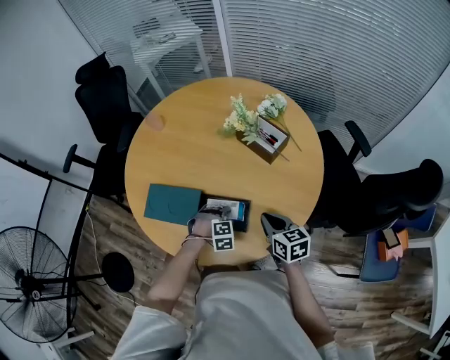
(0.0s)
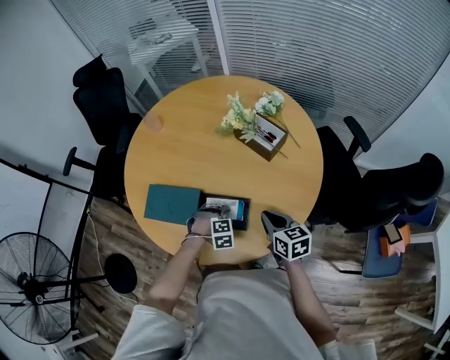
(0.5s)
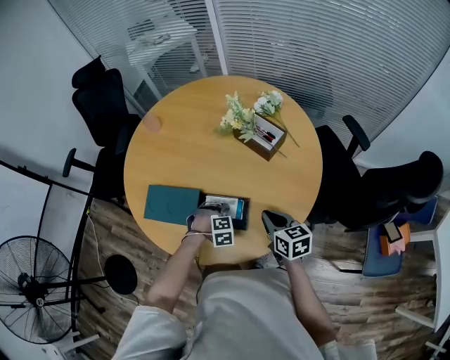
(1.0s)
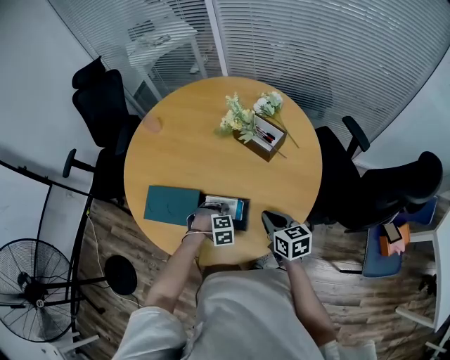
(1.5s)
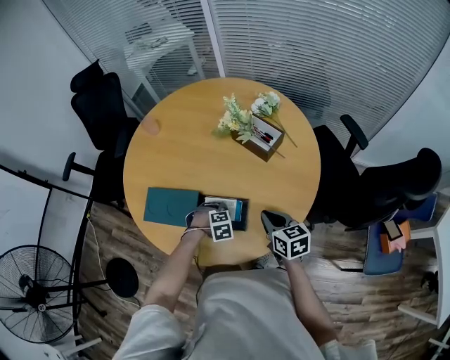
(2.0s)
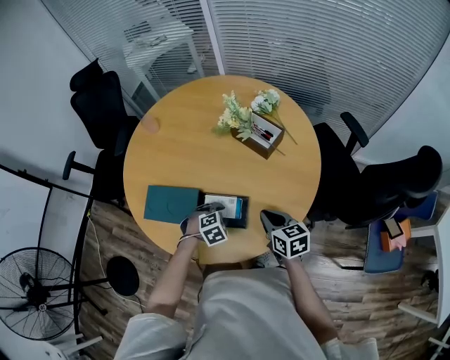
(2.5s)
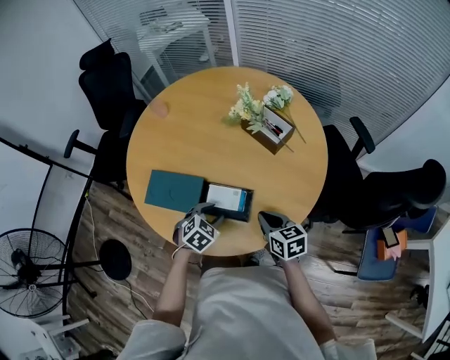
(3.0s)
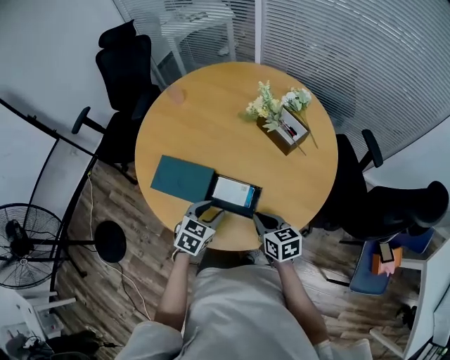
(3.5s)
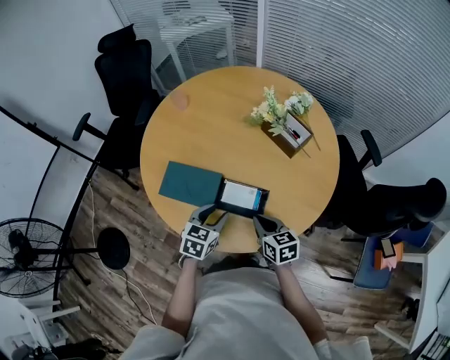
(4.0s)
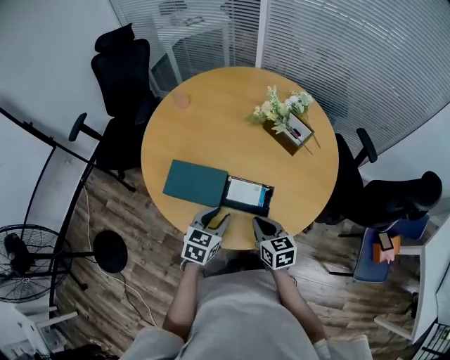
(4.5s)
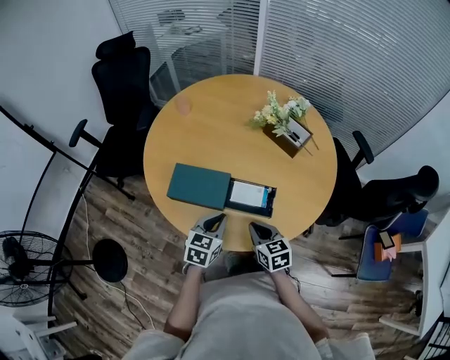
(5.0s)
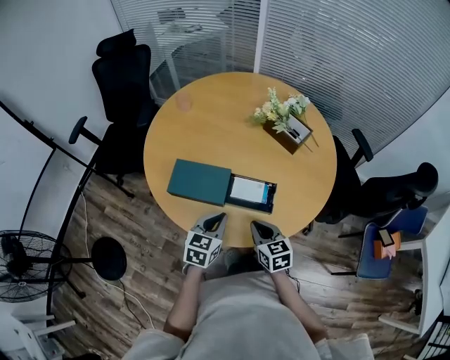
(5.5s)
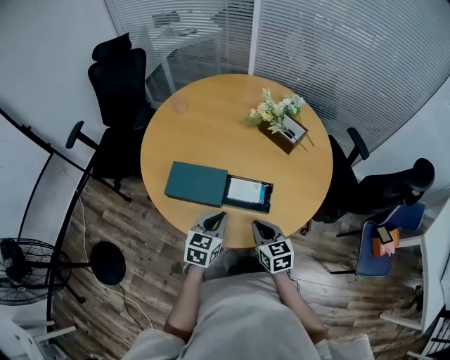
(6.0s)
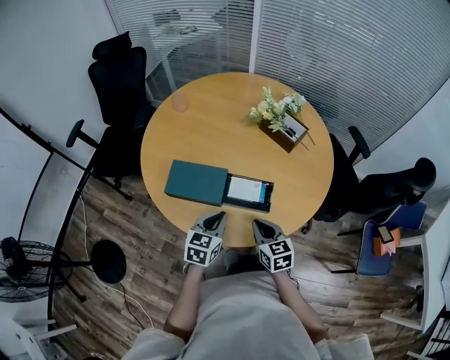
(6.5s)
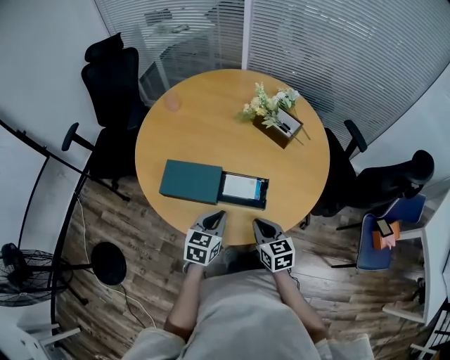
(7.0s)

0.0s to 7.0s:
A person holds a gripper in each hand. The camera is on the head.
0.0s to 2.0s: The grippers move only a little.
2.0s to 3.5s: The left gripper travels upward by some 15 cm, and rotates around the line of its fingers by roughly 60 degrees, counterclockwise from behind. The right gripper ends up about 10 cm from where it was.
3.5s to 5.0s: The two grippers go roughly 10 cm to the left. The left gripper closes.
5.0s to 7.0s: The grippers move only a little.

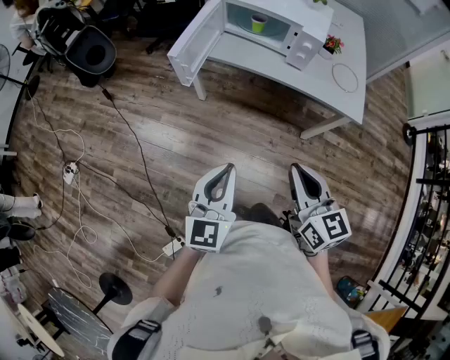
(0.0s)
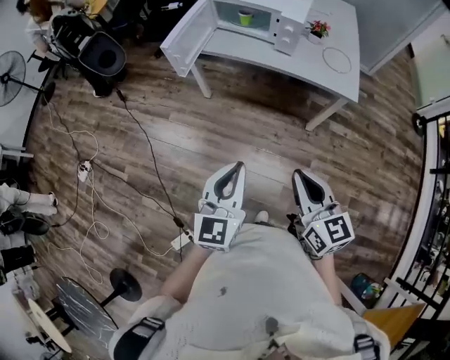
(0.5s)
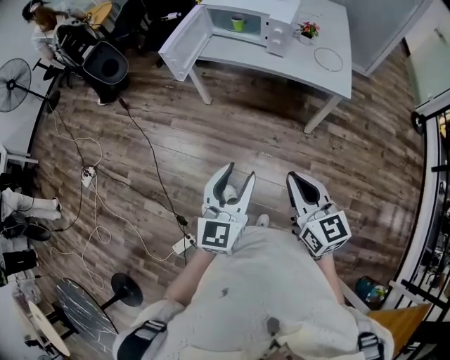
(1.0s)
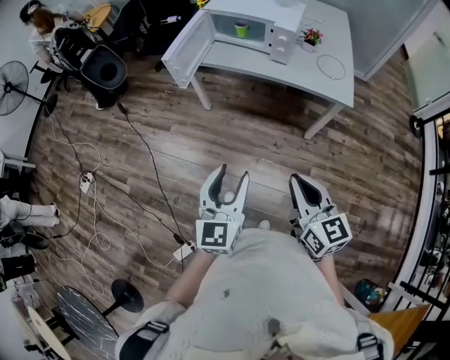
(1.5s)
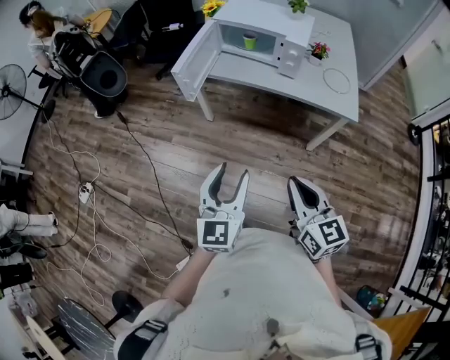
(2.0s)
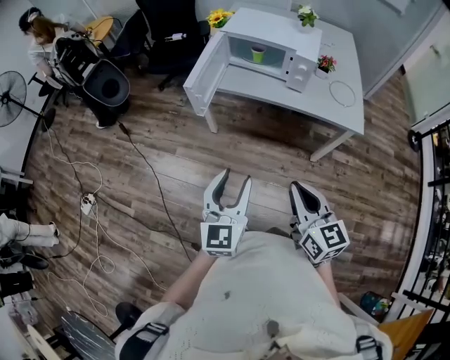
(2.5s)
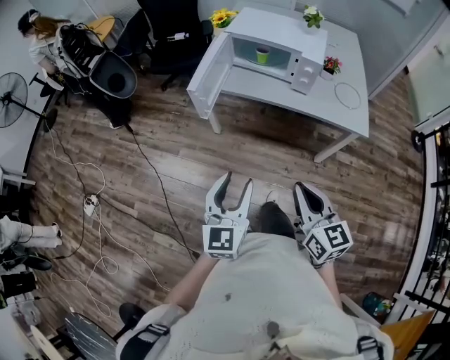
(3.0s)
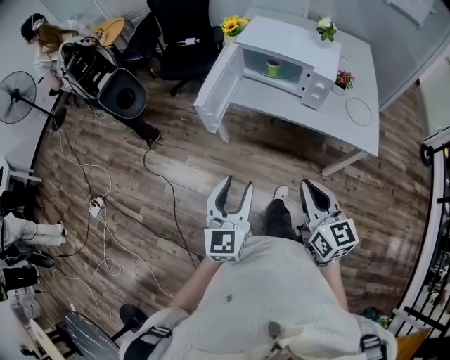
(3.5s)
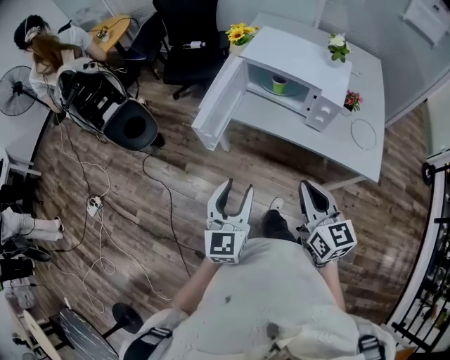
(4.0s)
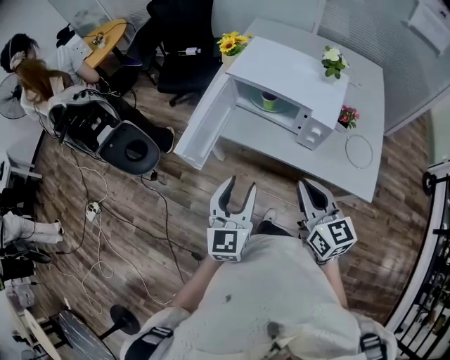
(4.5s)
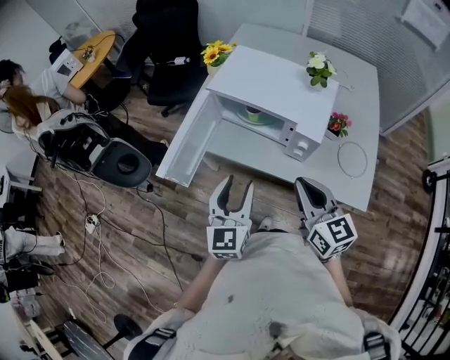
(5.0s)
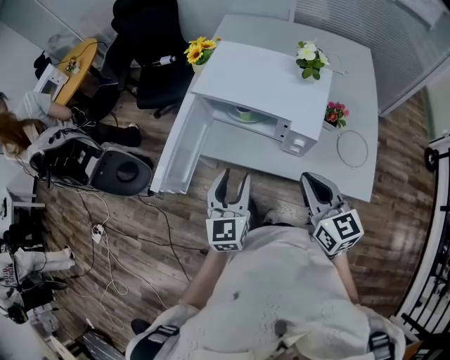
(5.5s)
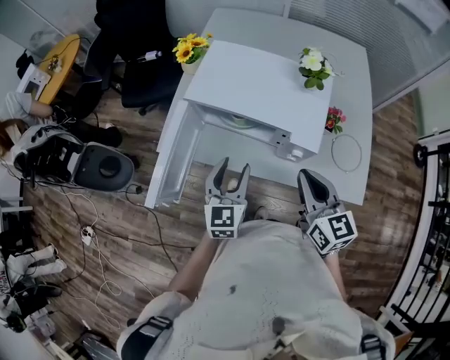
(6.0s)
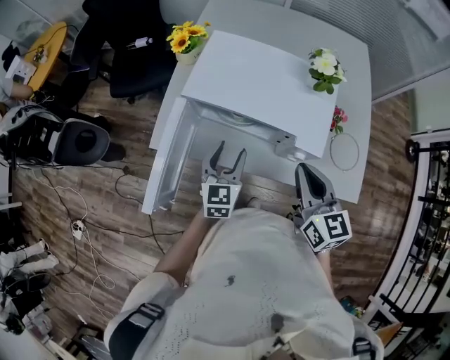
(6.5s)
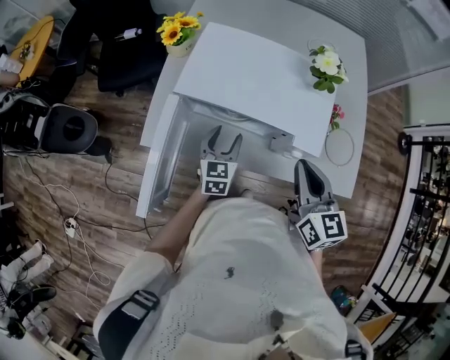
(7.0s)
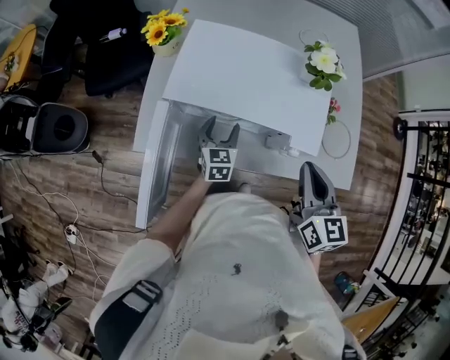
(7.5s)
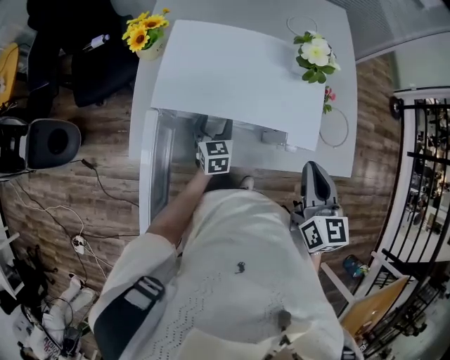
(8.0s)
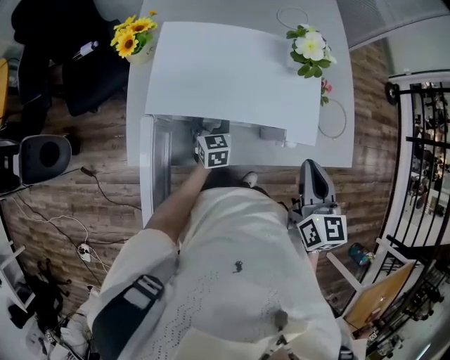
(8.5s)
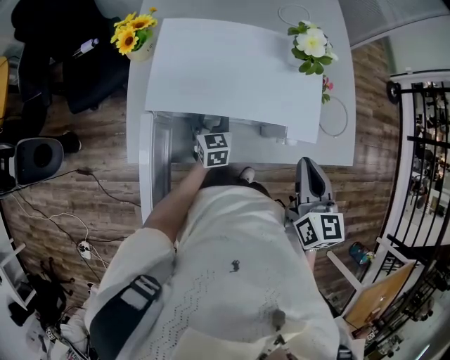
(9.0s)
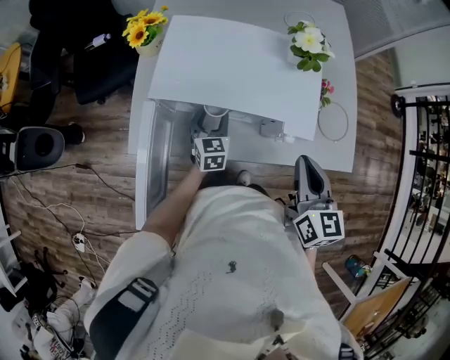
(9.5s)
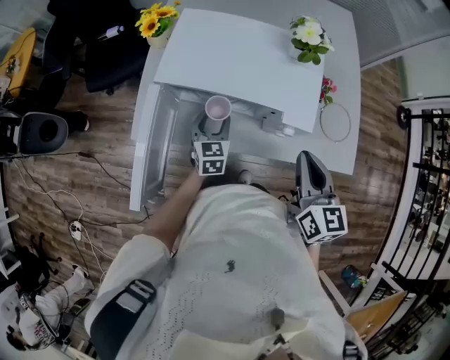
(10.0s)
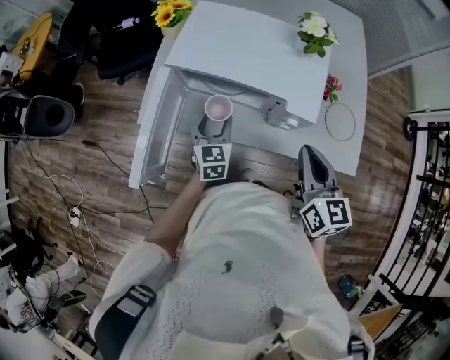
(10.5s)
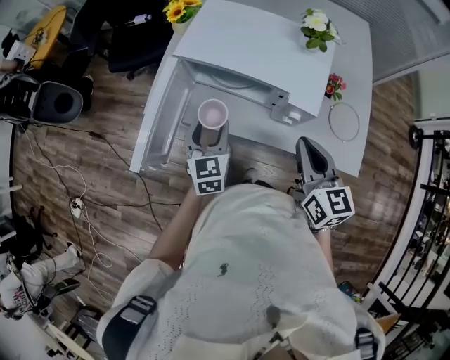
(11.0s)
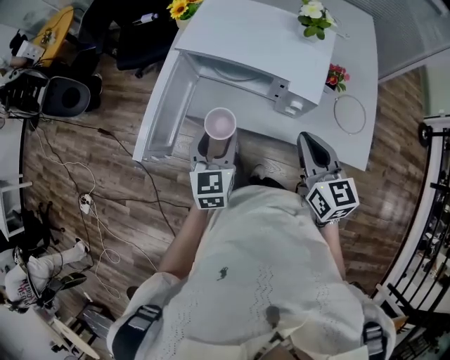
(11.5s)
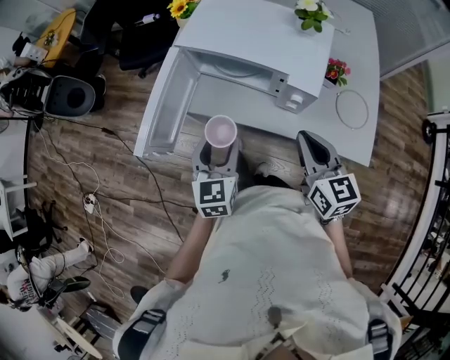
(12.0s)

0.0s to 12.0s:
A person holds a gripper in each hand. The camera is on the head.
0.0s to 2.0s: Both grippers move backward, roughly 10 cm. The left gripper opens up.
2.0s to 4.0s: The two grippers go roughly 25 cm forward.
4.0s to 6.0s: Both grippers move forward and to the right, some 35 cm.
6.0s to 8.0s: The left gripper heads forward and downward, covering approximately 25 cm. Meanwhile the right gripper moves forward, roughly 5 cm, and changes its angle by roughly 30 degrees.
8.0s to 10.0s: The left gripper travels backward by some 5 cm.
10.0s to 12.0s: The right gripper is displaced backward by approximately 10 cm, and changes its angle by approximately 20 degrees; the left gripper shifts about 25 cm backward and upward.

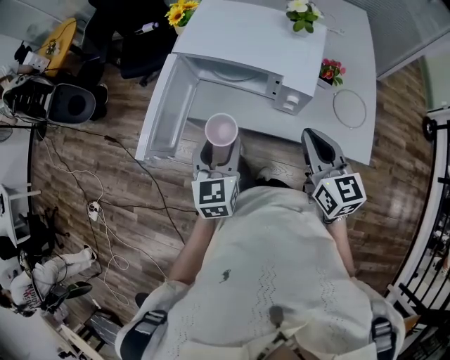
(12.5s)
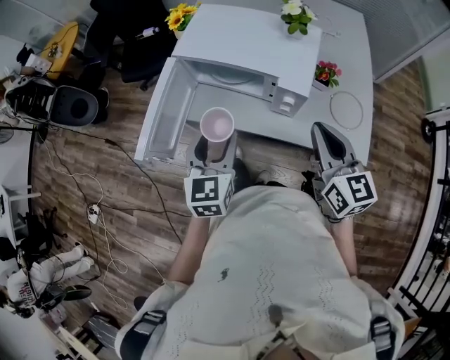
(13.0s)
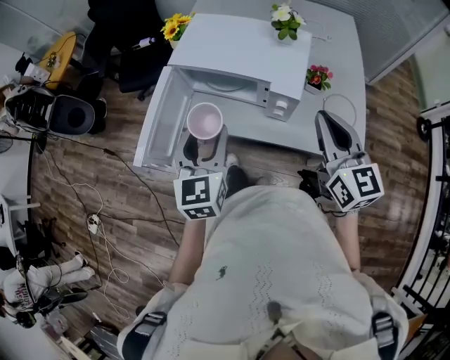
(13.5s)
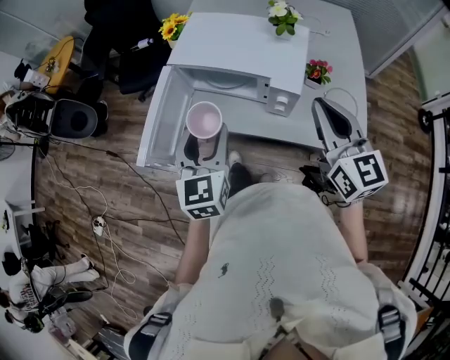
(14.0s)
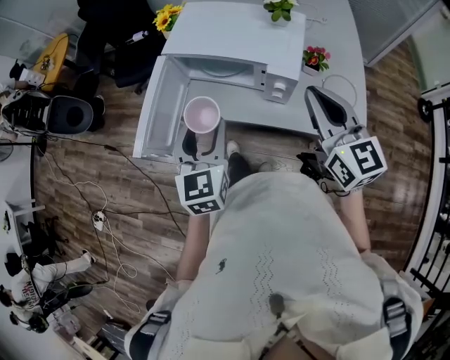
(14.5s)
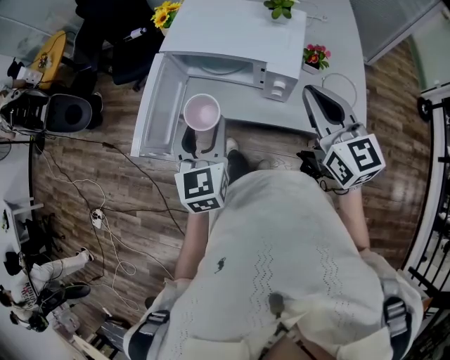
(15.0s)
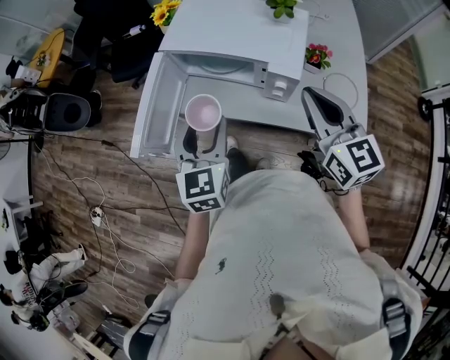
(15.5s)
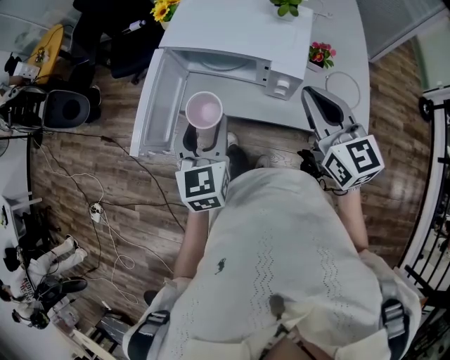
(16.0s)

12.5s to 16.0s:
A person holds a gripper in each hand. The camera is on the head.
12.5s to 14.5s: Both grippers travel together upward, approximately 10 cm.
14.5s to 16.0s: The grippers make only small movements.

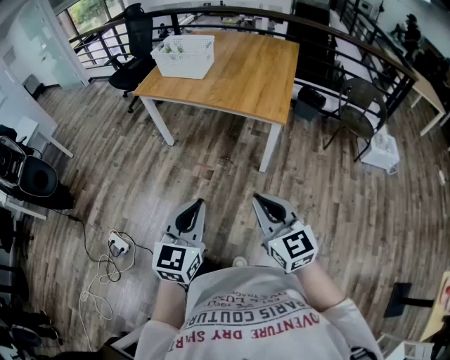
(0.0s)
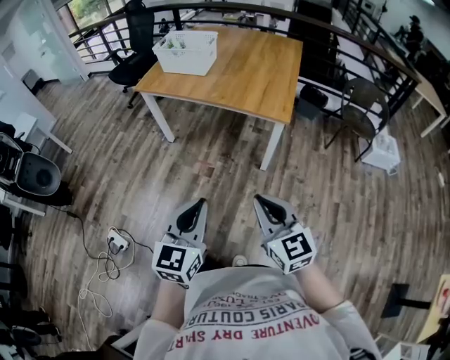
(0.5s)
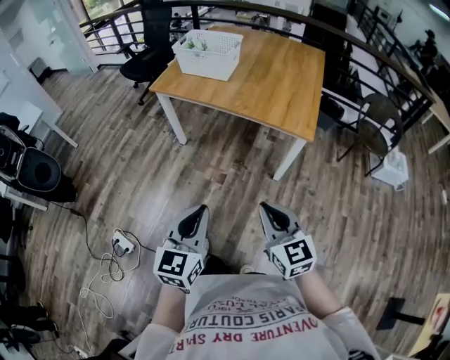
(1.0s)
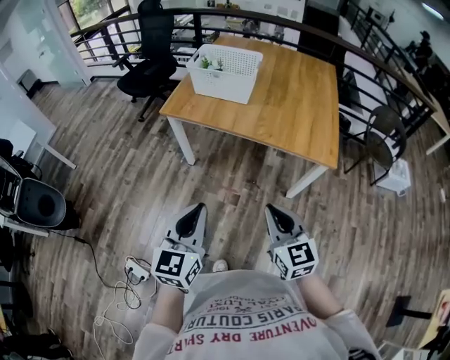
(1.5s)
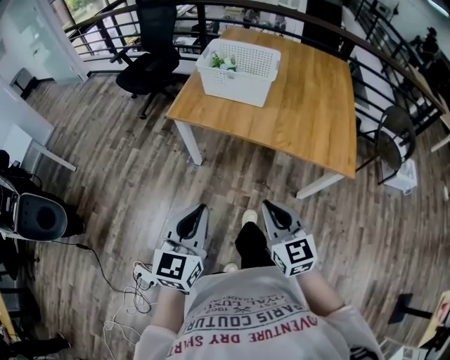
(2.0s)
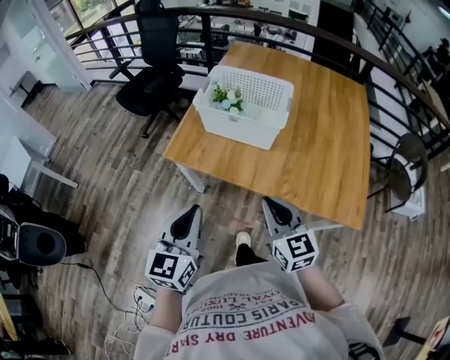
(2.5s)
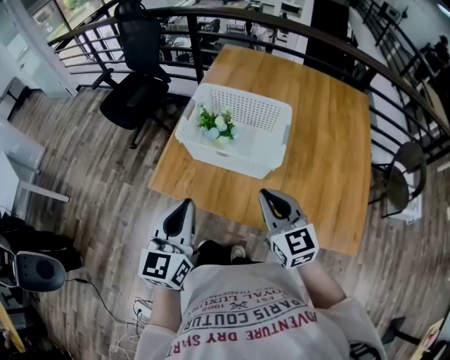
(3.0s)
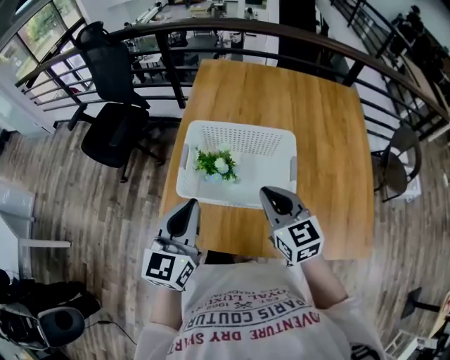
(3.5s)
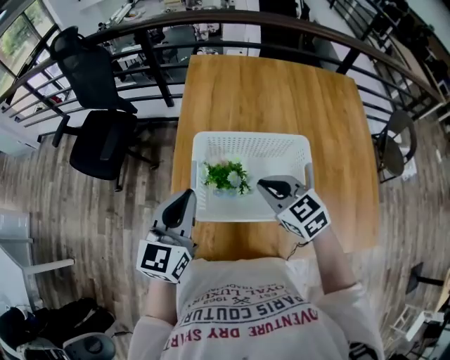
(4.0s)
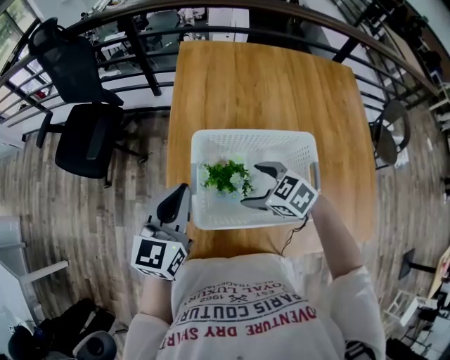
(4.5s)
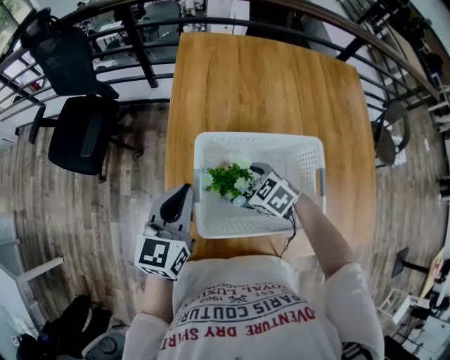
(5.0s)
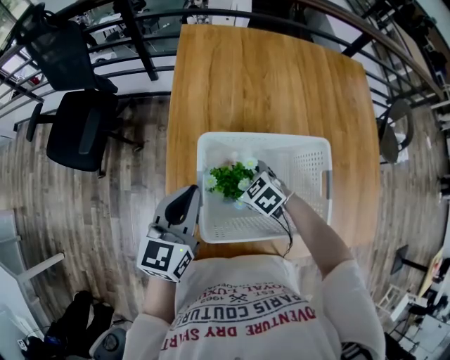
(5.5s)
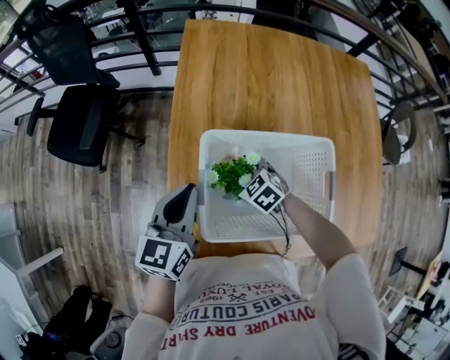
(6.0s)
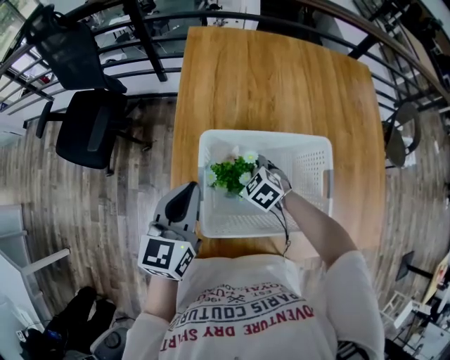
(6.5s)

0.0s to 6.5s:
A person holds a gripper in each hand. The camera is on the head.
0.0s to 2.0s: The two grippers travel together, forward and to the left, about 40 cm.
2.0s to 4.5s: Both grippers are carried forward, roughly 70 cm. The right gripper points its fingers about 30 degrees further downward, and opens up.
4.5s to 6.5s: The right gripper travels downward and forward by approximately 15 cm.
